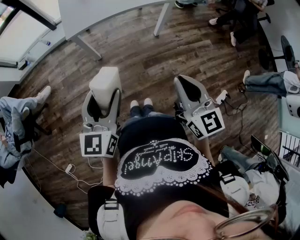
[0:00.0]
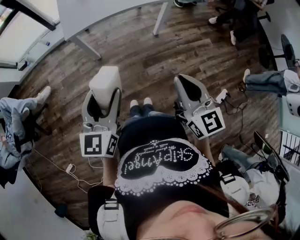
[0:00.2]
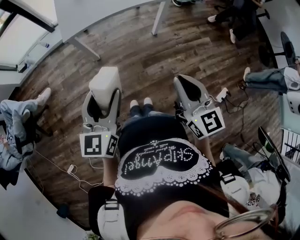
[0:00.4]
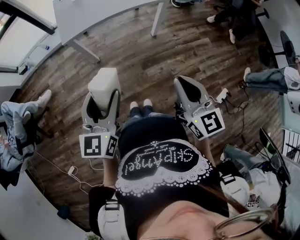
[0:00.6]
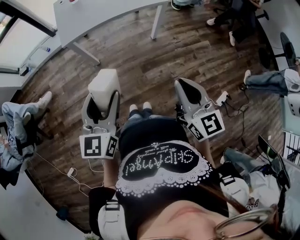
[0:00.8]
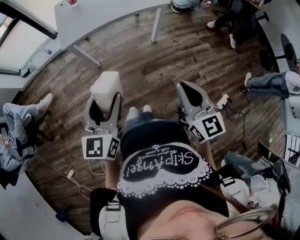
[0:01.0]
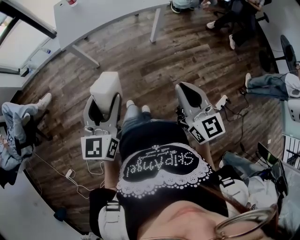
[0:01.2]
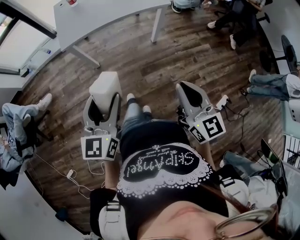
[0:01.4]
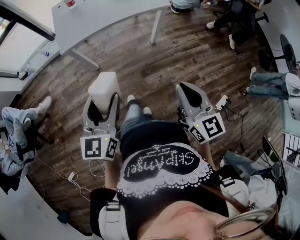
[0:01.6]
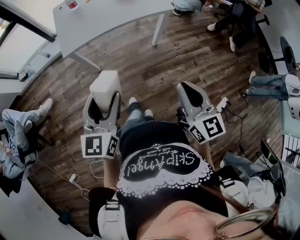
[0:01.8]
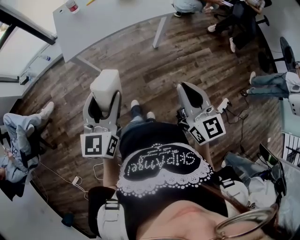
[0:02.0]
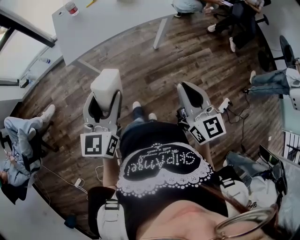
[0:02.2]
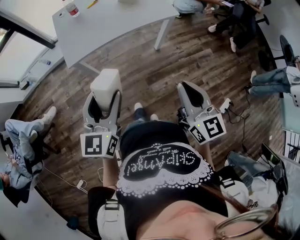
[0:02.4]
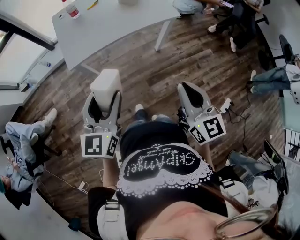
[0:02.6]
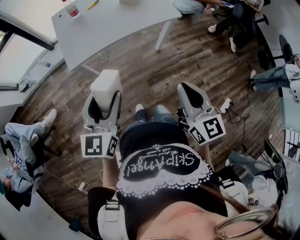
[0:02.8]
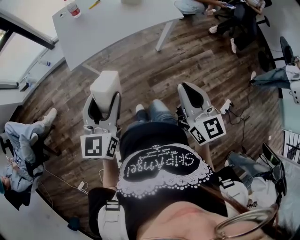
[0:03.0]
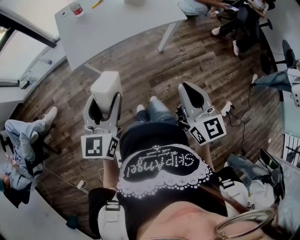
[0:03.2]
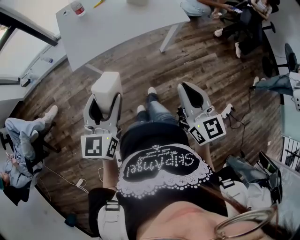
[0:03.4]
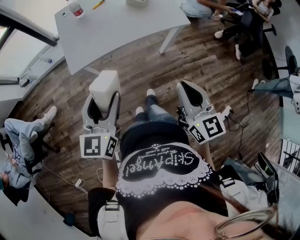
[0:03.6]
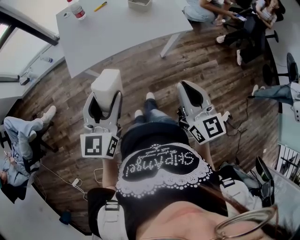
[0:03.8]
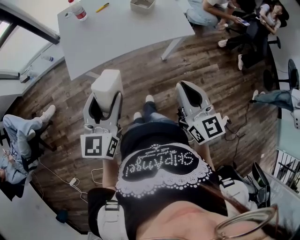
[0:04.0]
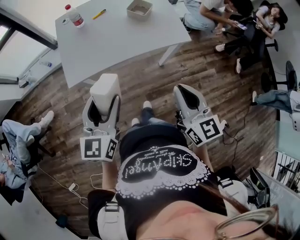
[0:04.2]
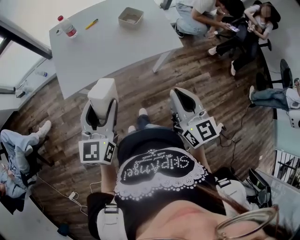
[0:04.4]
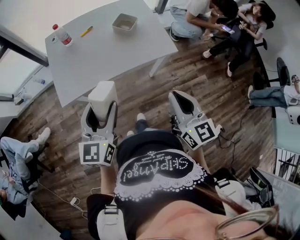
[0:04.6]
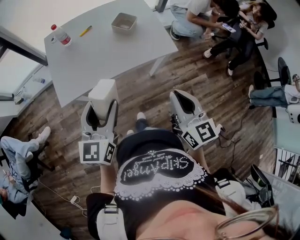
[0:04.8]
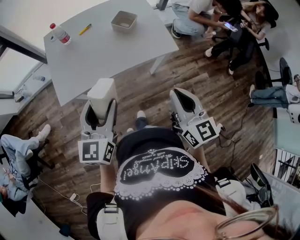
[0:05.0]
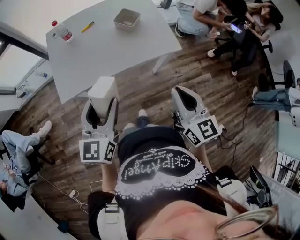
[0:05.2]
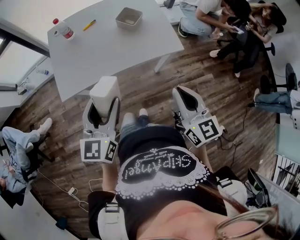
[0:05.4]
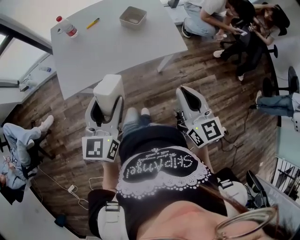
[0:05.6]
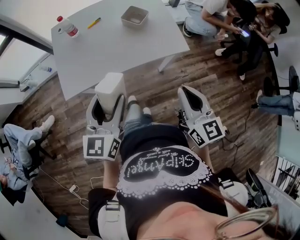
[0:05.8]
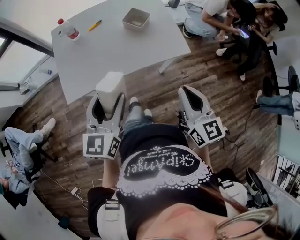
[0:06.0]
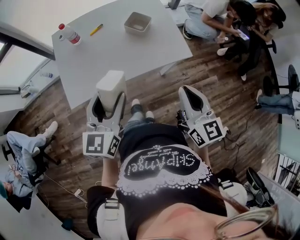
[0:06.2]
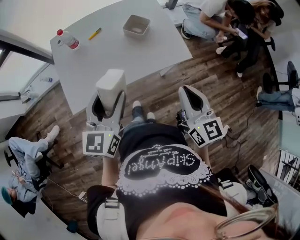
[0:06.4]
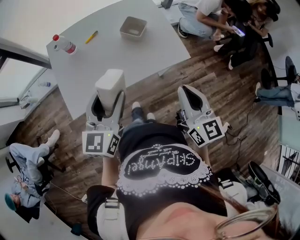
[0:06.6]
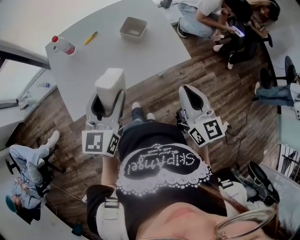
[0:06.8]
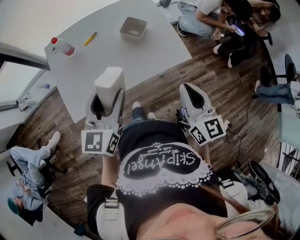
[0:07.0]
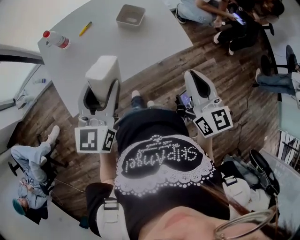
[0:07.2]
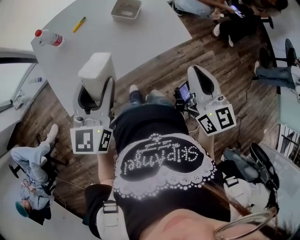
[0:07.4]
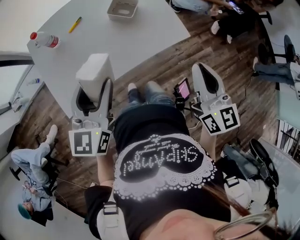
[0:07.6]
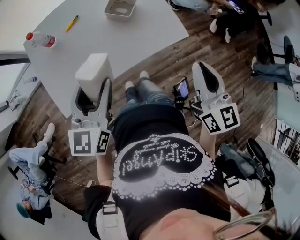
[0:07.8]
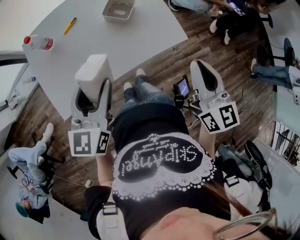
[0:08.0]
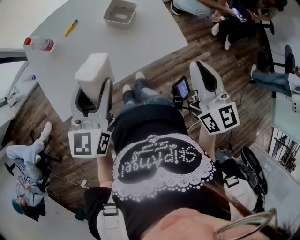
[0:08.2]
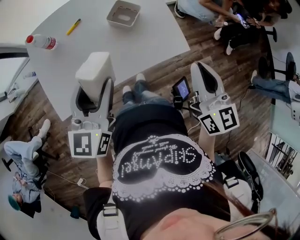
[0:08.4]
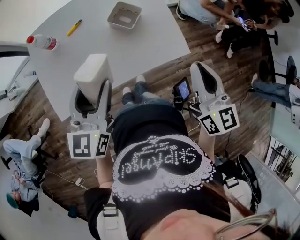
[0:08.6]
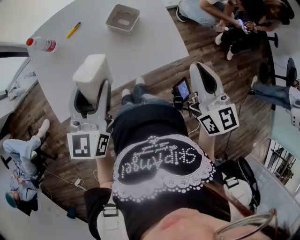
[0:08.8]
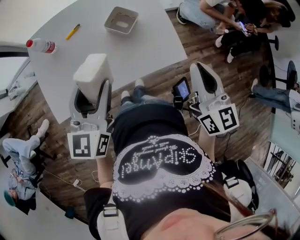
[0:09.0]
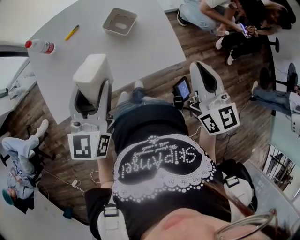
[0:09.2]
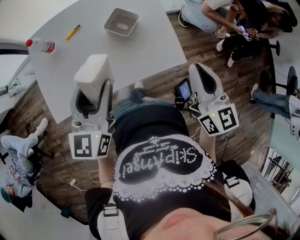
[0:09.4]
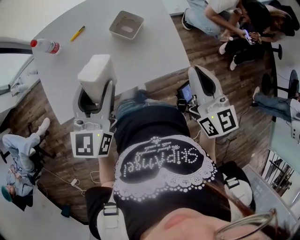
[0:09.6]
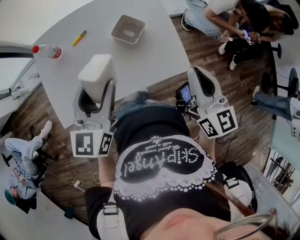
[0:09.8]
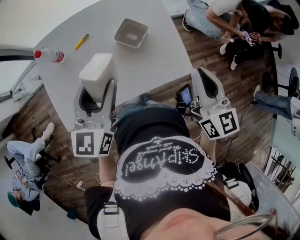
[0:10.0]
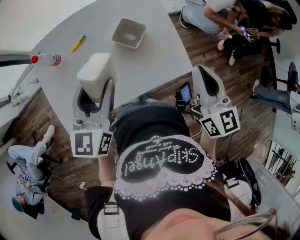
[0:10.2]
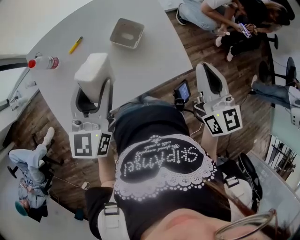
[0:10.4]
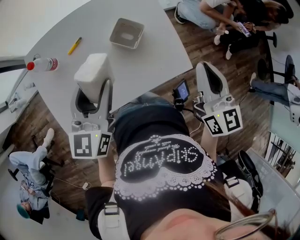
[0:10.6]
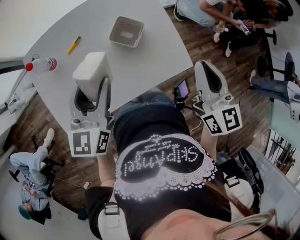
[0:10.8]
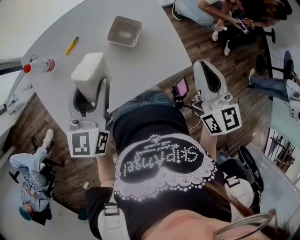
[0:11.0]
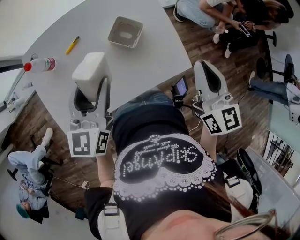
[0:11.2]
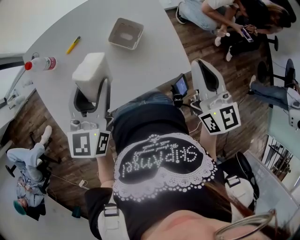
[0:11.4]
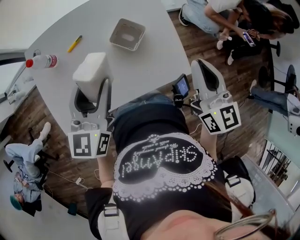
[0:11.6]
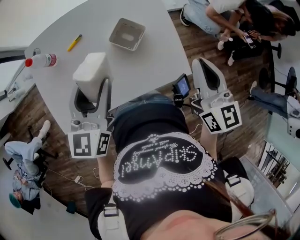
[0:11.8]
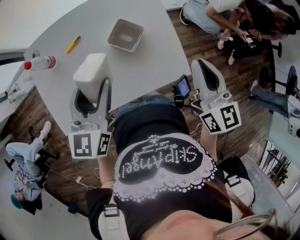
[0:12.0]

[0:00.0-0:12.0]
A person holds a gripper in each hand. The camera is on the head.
0:00.0 to 0:01.6: The left gripper changes place by about 5 cm. Meanwhile the right gripper goes some 5 cm to the right.
0:01.6 to 0:03.0: The two grippers go approximately 15 cm forward and to the left.
0:03.0 to 0:04.4: Both grippers travel together forward, some 15 cm.
0:04.4 to 0:06.0: The grippers both shift forward by approximately 5 cm.
0:06.0 to 0:07.6: The two grippers go some 10 cm forward.
0:07.6 to 0:09.0: The left gripper heads forward and to the right, covering some 10 cm. Meanwhile the right gripper moves forward, about 10 cm.
0:09.0 to 0:10.4: The two grippers go some 5 cm forward.
0:10.4 to 0:12.0: There are only small adjustments of the grippers.

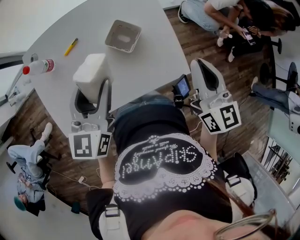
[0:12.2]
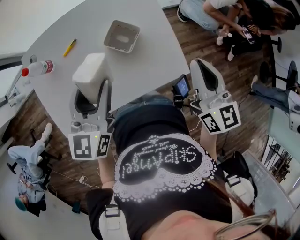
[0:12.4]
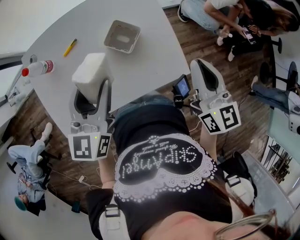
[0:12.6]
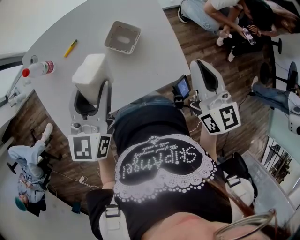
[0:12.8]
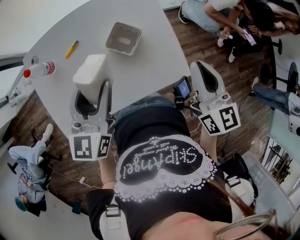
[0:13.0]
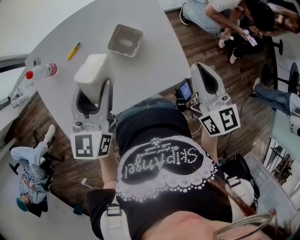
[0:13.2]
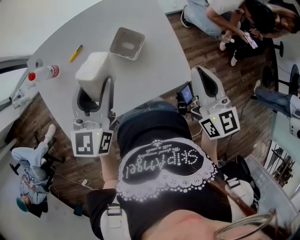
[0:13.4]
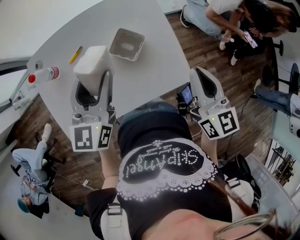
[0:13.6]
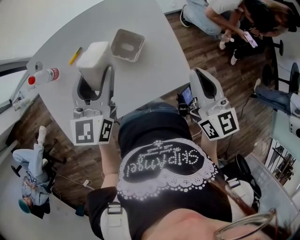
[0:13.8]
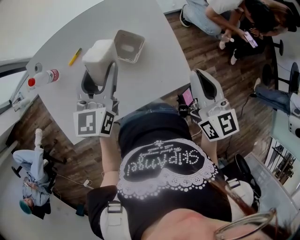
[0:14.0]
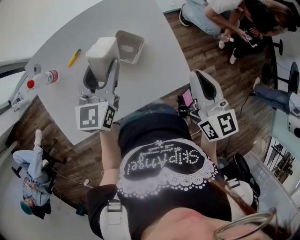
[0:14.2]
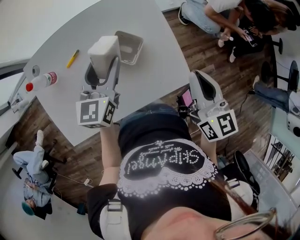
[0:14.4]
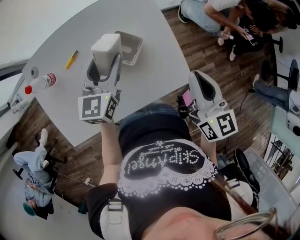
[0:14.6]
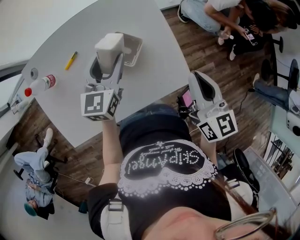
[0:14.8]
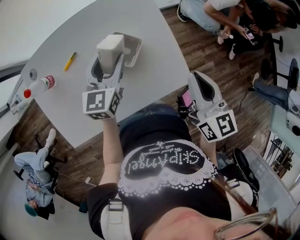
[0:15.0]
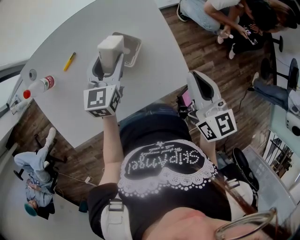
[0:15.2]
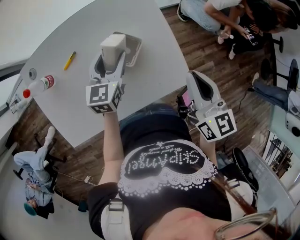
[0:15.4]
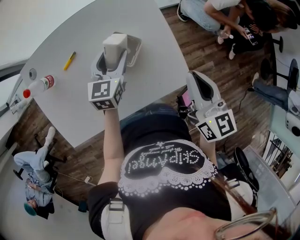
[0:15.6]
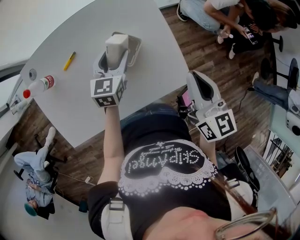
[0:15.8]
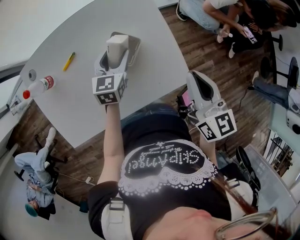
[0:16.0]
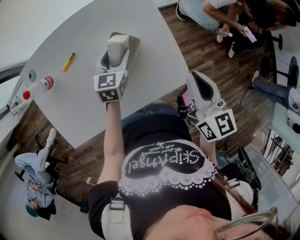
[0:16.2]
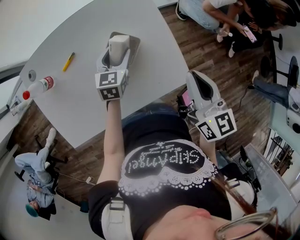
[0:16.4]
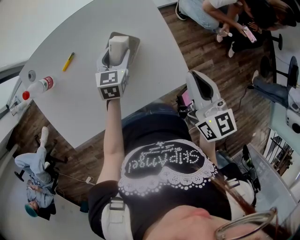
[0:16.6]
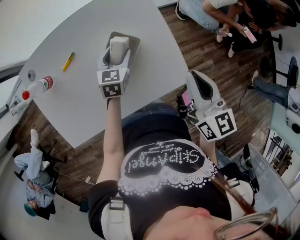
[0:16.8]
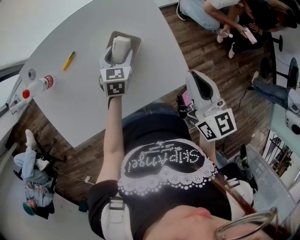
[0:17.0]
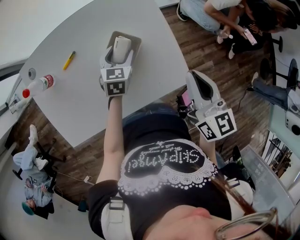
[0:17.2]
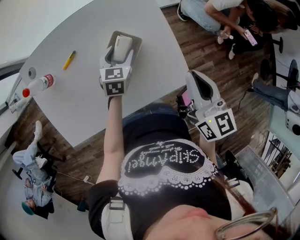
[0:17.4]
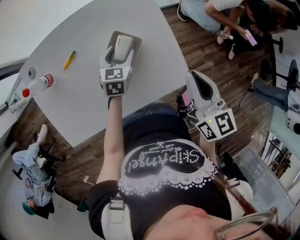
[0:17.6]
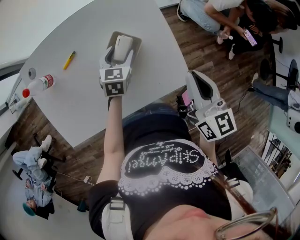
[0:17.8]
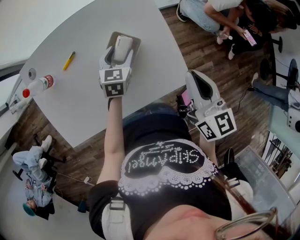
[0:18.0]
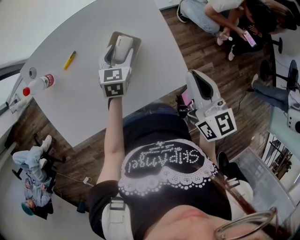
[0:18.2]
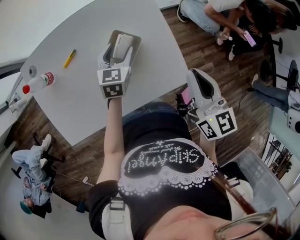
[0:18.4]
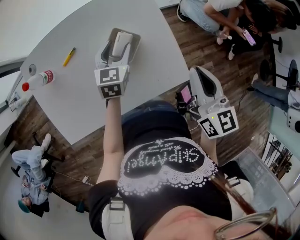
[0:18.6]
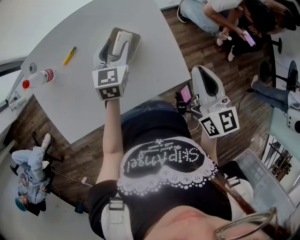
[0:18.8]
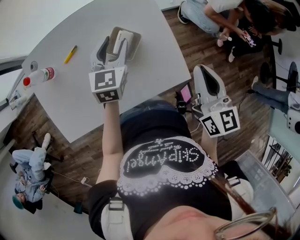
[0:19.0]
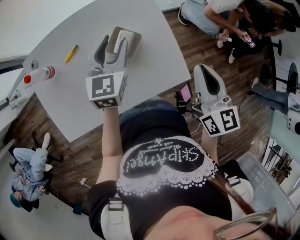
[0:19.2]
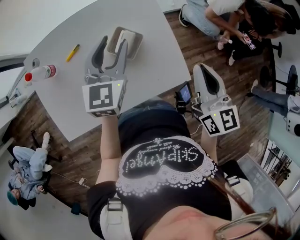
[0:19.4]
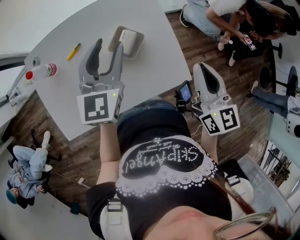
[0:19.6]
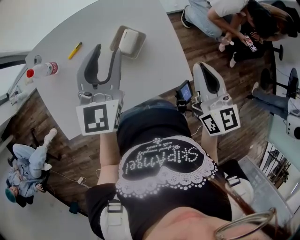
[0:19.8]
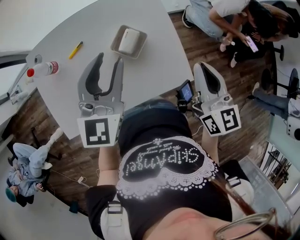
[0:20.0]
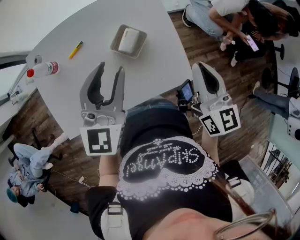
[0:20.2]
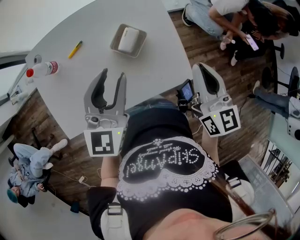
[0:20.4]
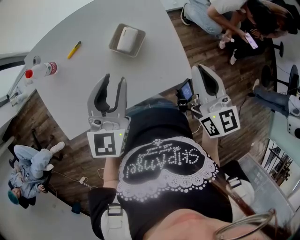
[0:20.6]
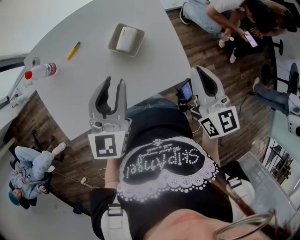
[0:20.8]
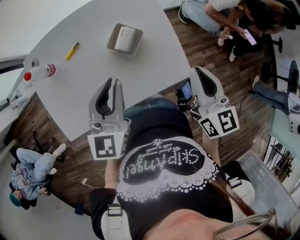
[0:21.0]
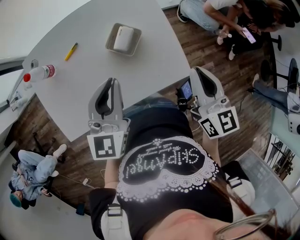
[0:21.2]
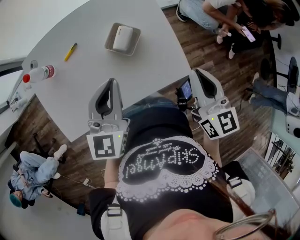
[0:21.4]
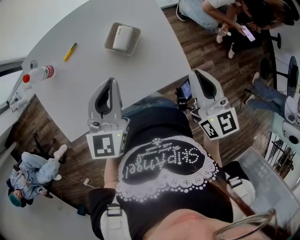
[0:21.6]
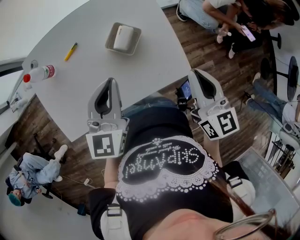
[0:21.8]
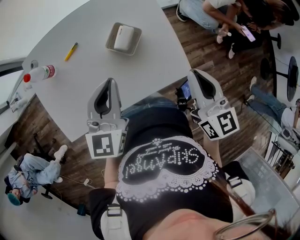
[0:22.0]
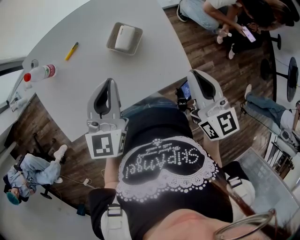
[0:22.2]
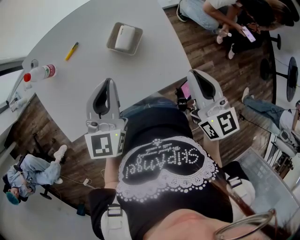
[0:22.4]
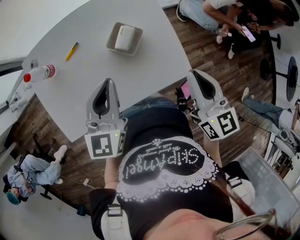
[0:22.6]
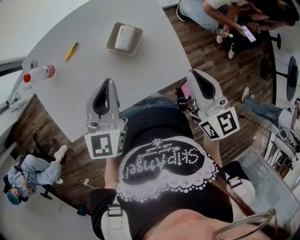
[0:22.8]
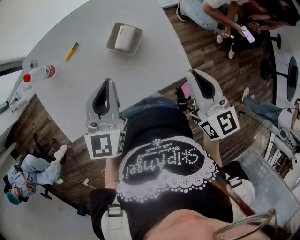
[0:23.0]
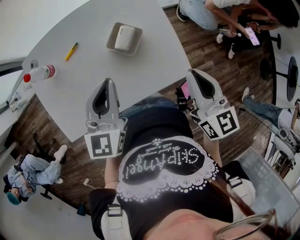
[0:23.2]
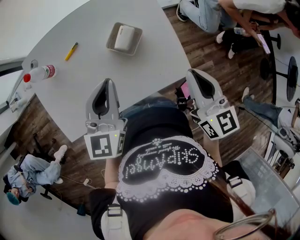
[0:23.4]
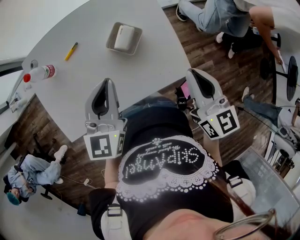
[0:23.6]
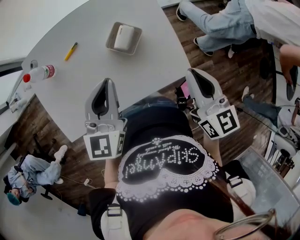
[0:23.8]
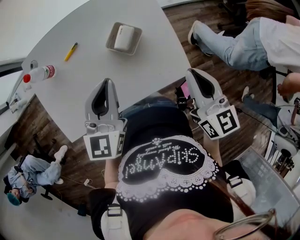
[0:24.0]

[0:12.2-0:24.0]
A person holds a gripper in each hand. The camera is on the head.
0:12.2 to 0:13.6: The left gripper heads forward, covering approximately 5 cm.
0:13.6 to 0:15.2: The left gripper heads downward and forward, covering approximately 15 cm.
0:15.2 to 0:16.6: The left gripper goes approximately 10 cm downward.
0:16.6 to 0:18.2: The grippers move only a little.
0:18.2 to 0:19.6: The left gripper travels upward by roughly 20 cm, and swivels approximately 20 degrees.
0:19.6 to 0:21.0: The left gripper travels backward by roughly 10 cm, and closes up.
0:21.0 to 0:22.6: The grippers move only a little.
0:22.6 to 0:24.0: Both grippers stay put.
